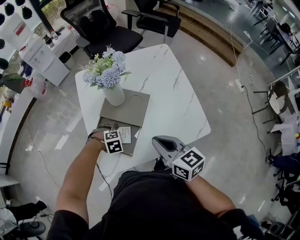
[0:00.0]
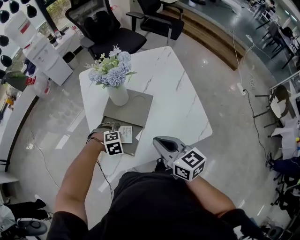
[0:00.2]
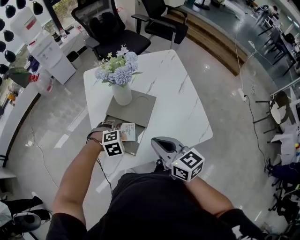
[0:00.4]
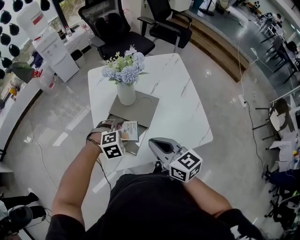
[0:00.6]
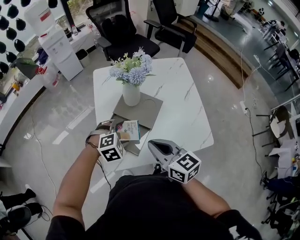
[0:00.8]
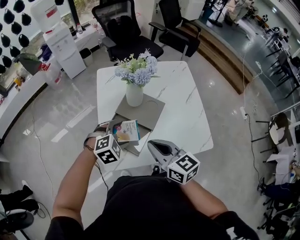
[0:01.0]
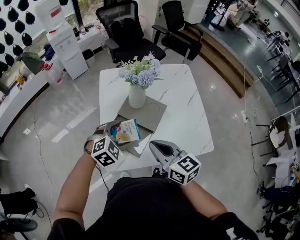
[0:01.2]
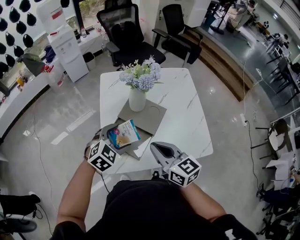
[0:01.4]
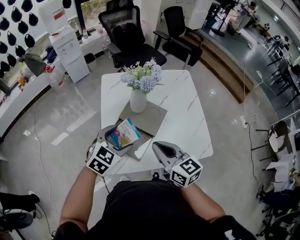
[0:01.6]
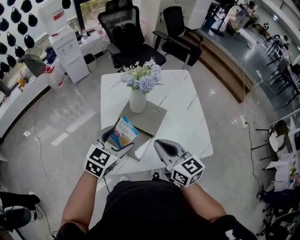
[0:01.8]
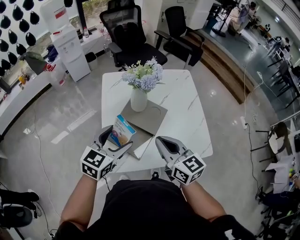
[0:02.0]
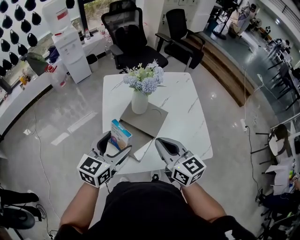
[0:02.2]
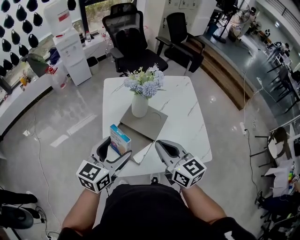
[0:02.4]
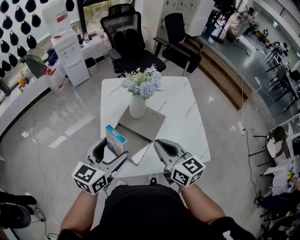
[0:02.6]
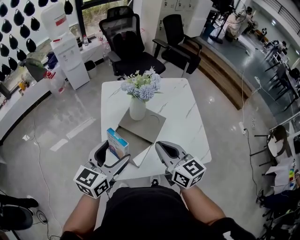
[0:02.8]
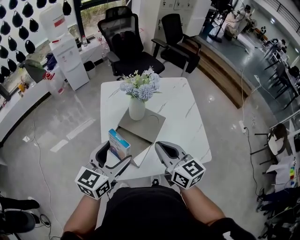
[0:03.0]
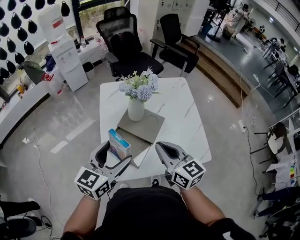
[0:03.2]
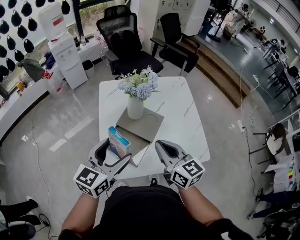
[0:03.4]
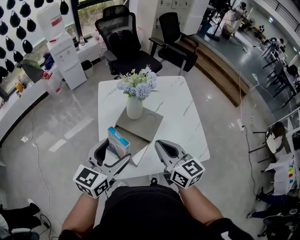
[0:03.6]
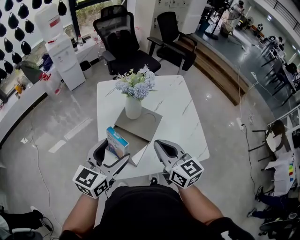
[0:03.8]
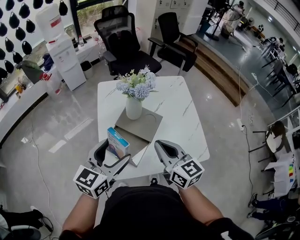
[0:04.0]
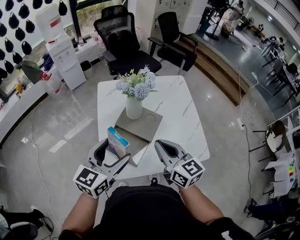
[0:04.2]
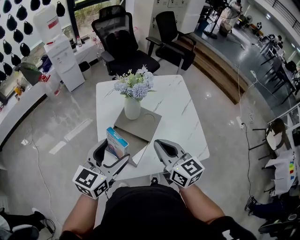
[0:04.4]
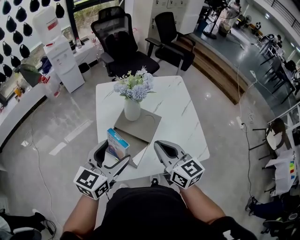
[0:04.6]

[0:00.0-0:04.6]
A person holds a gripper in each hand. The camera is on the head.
0:00.0 to 0:01.6: The right gripper moves some 10 cm; the left gripper travels upward by roughly 25 cm, and tips its fingers upward by some 50 degrees.
0:01.6 to 0:03.0: The left gripper goes some 10 cm upward, and rotates about 30 degrees.
0:03.0 to 0:04.6: Neither gripper changes place.

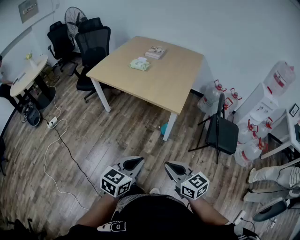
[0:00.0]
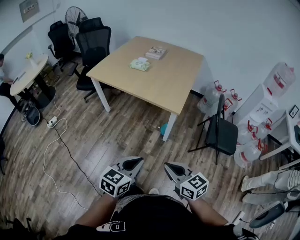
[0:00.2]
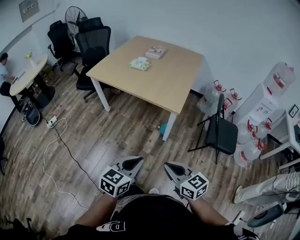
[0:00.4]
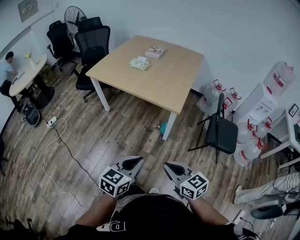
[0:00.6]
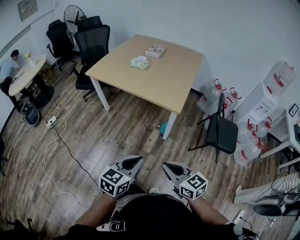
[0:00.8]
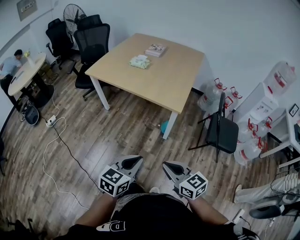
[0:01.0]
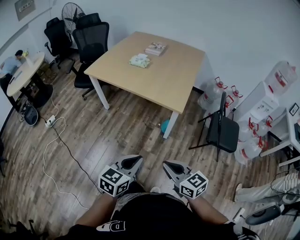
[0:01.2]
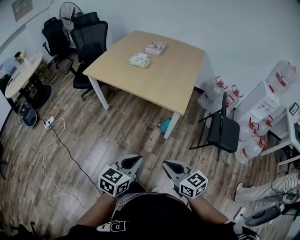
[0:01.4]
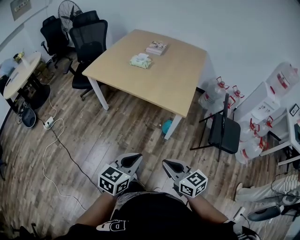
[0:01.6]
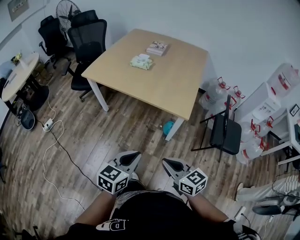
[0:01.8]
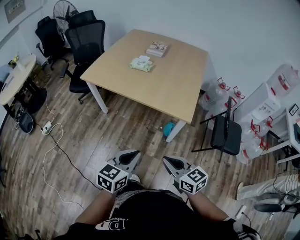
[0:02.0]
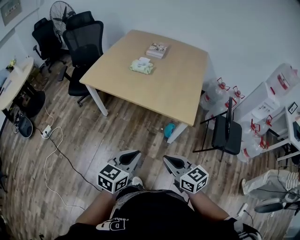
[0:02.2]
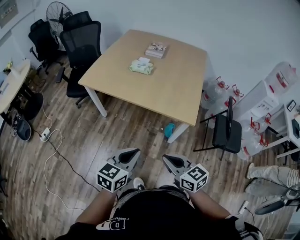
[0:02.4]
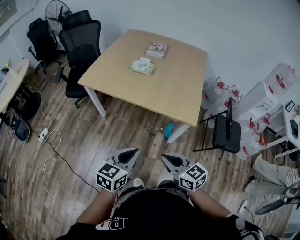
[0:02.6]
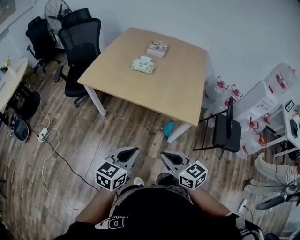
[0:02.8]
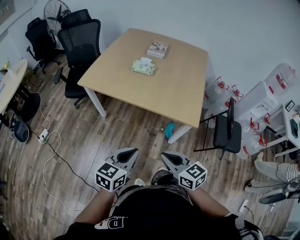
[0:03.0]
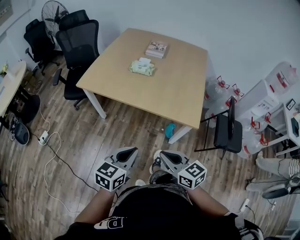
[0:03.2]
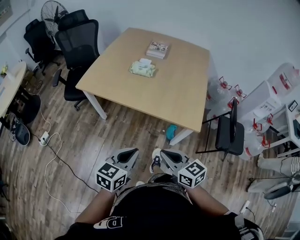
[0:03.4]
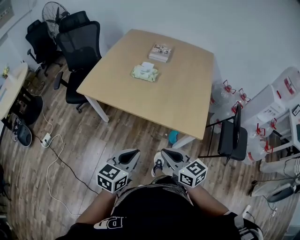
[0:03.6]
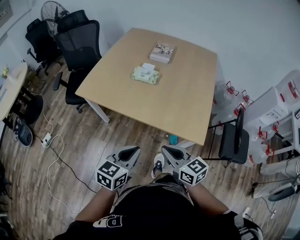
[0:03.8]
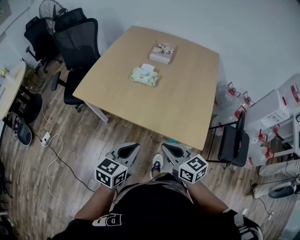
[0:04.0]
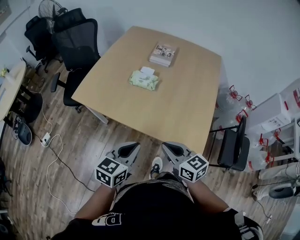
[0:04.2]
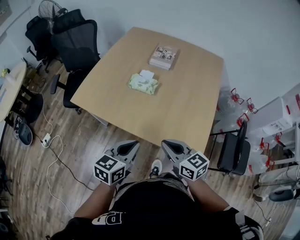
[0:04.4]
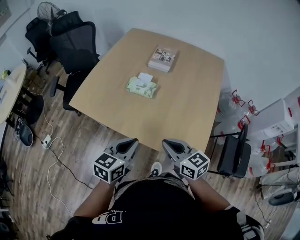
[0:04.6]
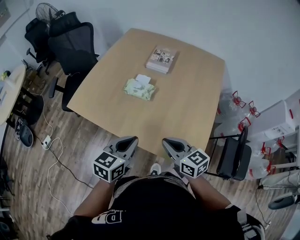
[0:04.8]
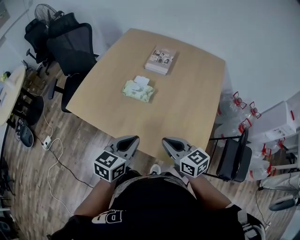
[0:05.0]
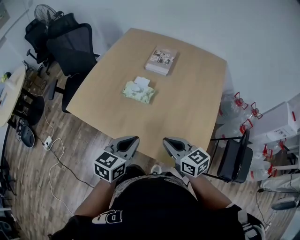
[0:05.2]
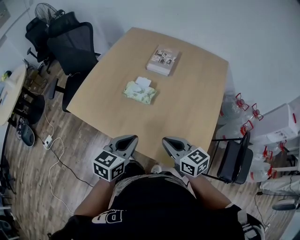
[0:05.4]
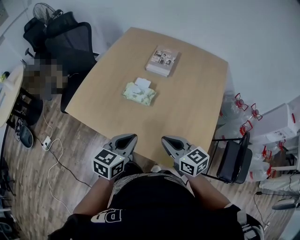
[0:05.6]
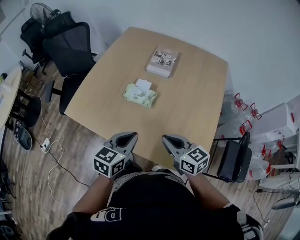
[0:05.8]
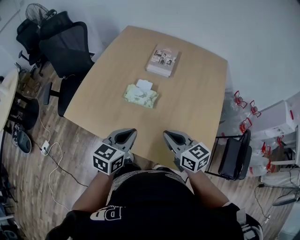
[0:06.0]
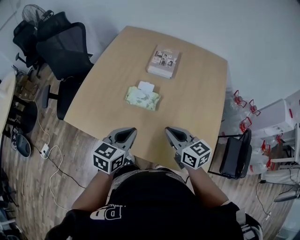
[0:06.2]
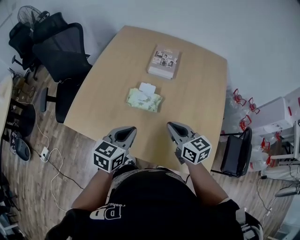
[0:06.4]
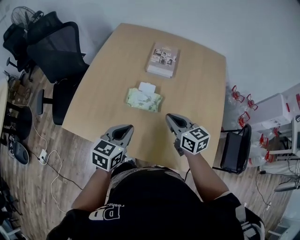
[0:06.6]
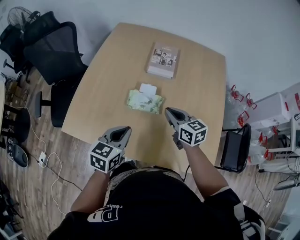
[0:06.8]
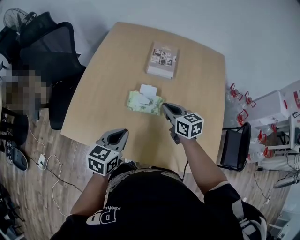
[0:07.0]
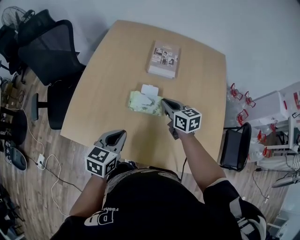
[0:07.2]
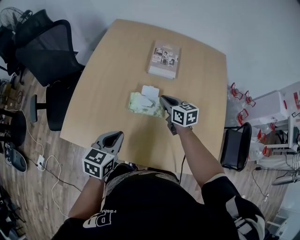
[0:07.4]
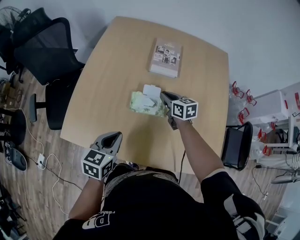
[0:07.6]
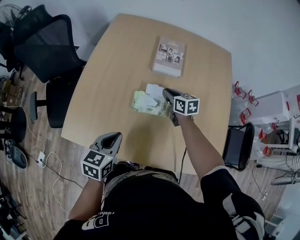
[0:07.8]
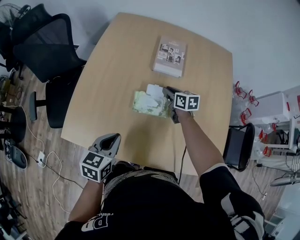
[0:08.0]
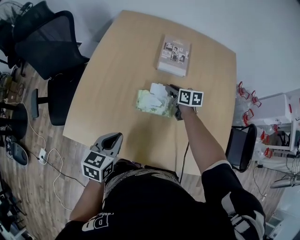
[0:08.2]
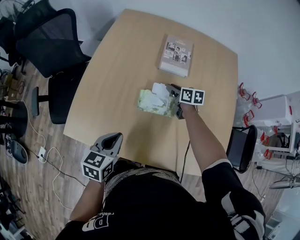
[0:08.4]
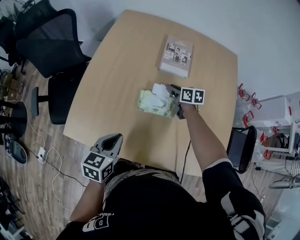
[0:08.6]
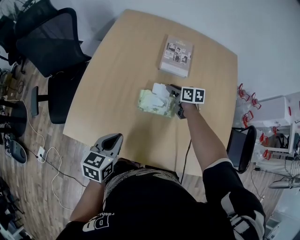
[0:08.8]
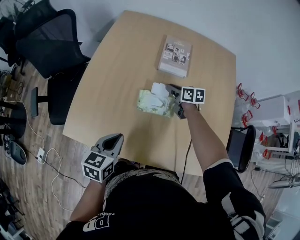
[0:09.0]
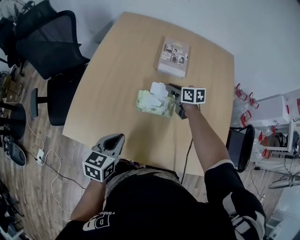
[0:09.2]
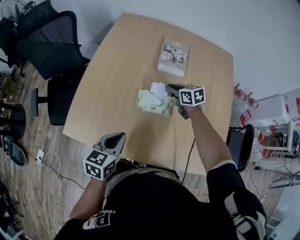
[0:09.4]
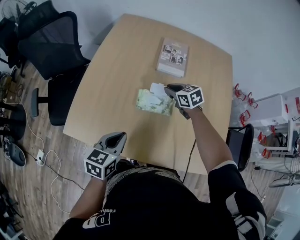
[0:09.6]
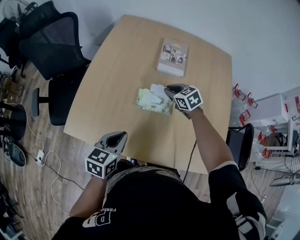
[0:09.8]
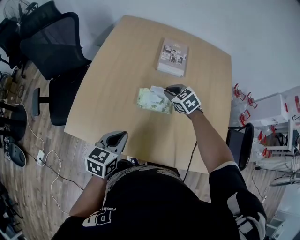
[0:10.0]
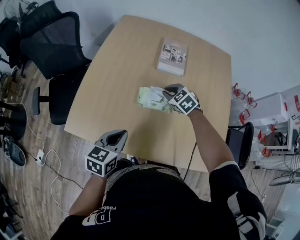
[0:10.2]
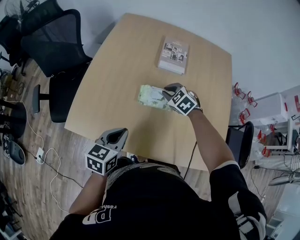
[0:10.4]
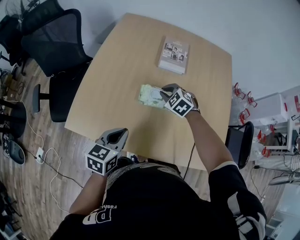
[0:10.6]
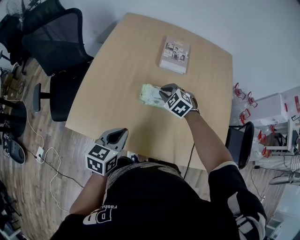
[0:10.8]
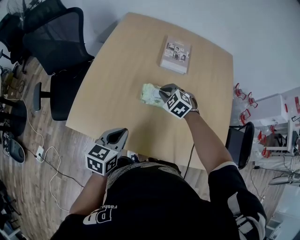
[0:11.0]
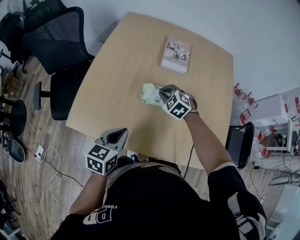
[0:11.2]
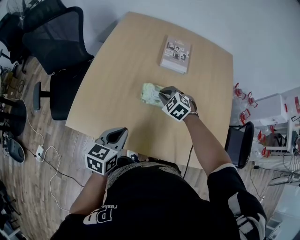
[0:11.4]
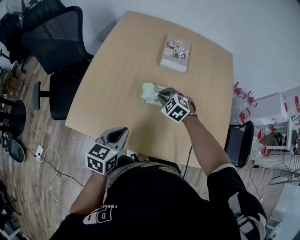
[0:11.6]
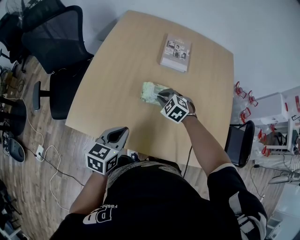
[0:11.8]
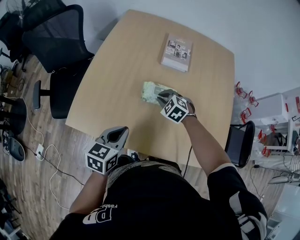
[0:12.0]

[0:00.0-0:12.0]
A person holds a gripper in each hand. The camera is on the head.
0:00.0 to 0:01.6: Both grippers travel together forward and to the left, roughly 10 cm.
0:01.6 to 0:03.0: Both grippers travel together forward and to the left, approximately 20 cm.
0:03.0 to 0:04.4: Both grippers travel together forward, roughly 30 cm.
0:04.4 to 0:06.0: The two grippers go about 15 cm forward.
0:06.0 to 0:07.6: The left gripper shifts some 20 cm to the left, forward and downward. Meanwhile the right gripper is displaced forward and downward by approximately 30 cm, and changes its angle by approximately 20 degrees.
0:07.6 to 0:09.0: The right gripper is displaced forward by roughly 5 cm.
0:09.0 to 0:10.4: The right gripper travels backward by roughly 10 cm, and twists about 60 degrees counterclockwise, seen from behind.
0:10.4 to 0:12.0: The right gripper moves approximately 5 cm.

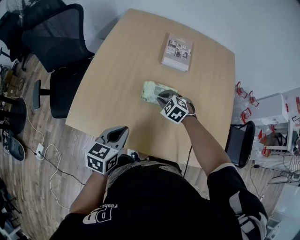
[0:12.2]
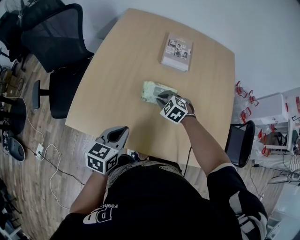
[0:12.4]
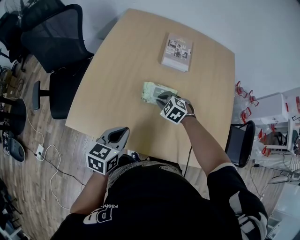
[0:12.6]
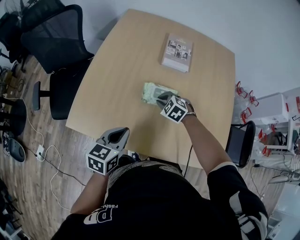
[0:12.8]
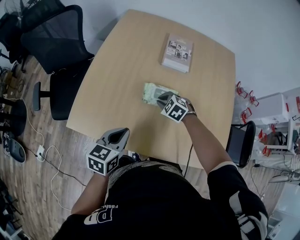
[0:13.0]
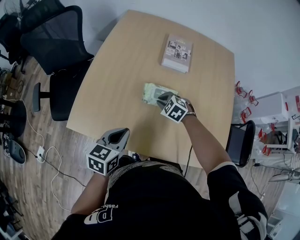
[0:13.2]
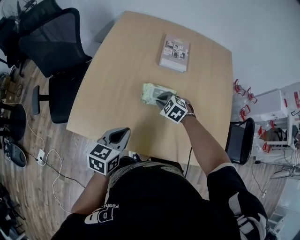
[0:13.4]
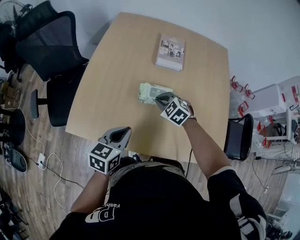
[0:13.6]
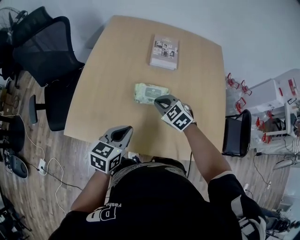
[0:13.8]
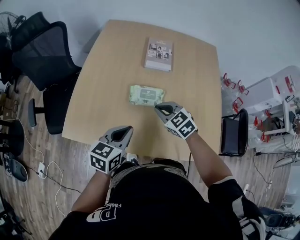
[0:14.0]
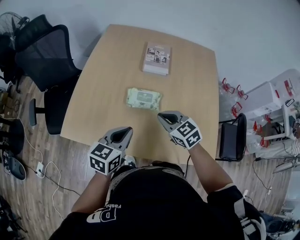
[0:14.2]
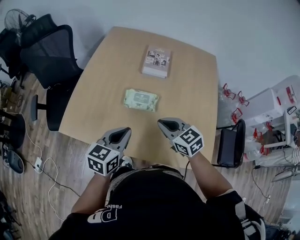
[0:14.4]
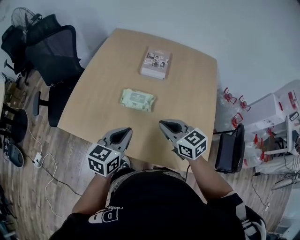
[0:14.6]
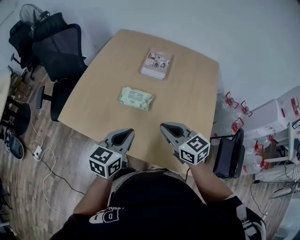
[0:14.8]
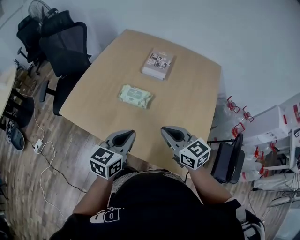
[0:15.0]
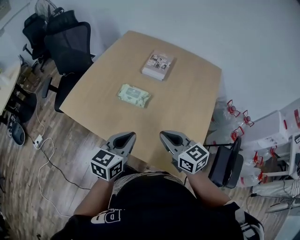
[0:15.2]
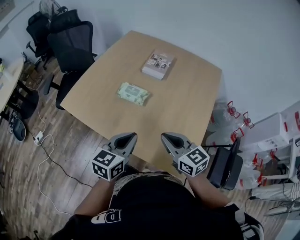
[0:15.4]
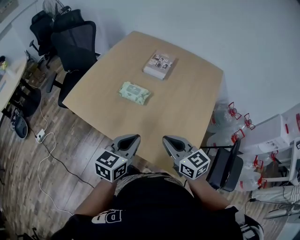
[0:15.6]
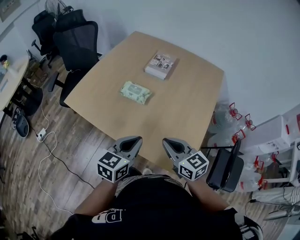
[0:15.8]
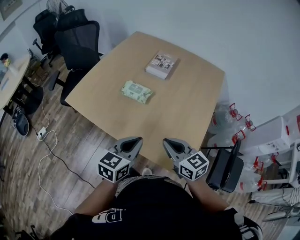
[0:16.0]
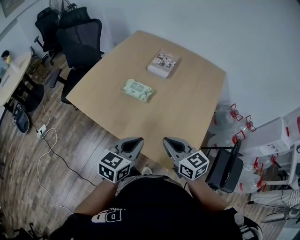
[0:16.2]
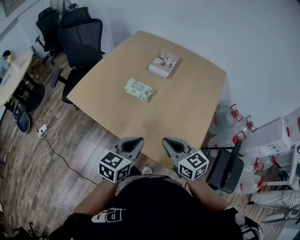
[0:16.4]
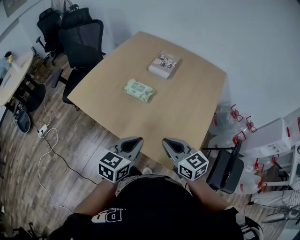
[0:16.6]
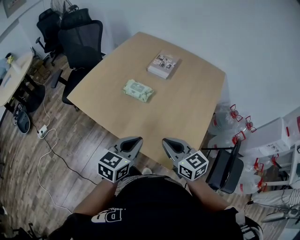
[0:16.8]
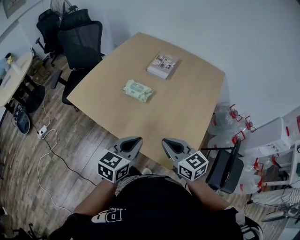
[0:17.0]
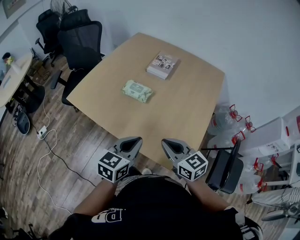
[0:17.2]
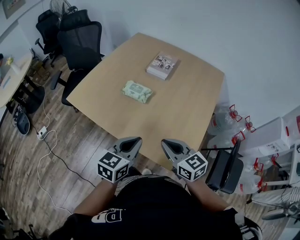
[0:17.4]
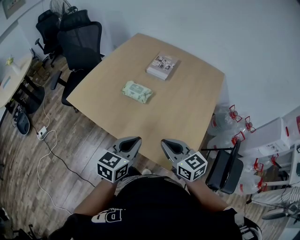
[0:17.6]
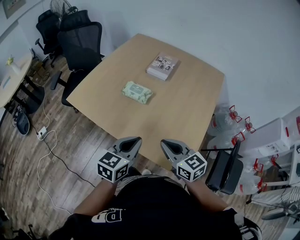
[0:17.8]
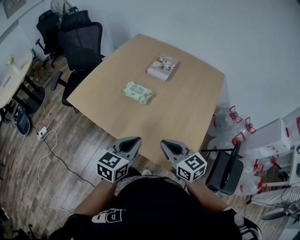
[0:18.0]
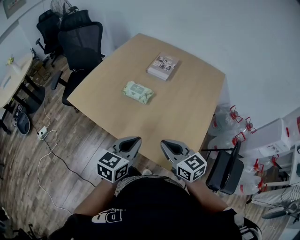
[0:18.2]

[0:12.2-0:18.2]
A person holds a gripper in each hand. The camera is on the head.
0:12.2 to 0:13.8: The right gripper goes some 5 cm upward.
0:13.8 to 0:15.2: The right gripper heads backward, to the right and upward, covering roughly 30 cm, and rotates some 40 degrees. The left gripper is displaced to the right, backward and upward by about 25 cm, and changes its angle by approximately 20 degrees.
0:15.2 to 0:16.6: The grippers both shift backward by some 10 cm.
0:16.6 to 0:18.2: Both grippers stay about where they are.

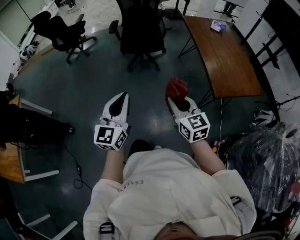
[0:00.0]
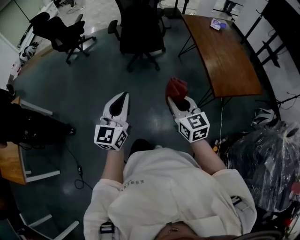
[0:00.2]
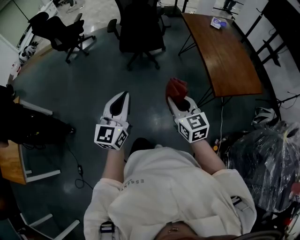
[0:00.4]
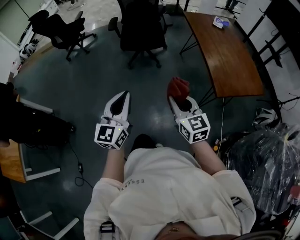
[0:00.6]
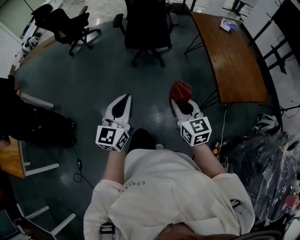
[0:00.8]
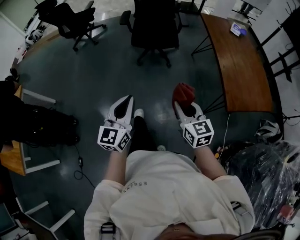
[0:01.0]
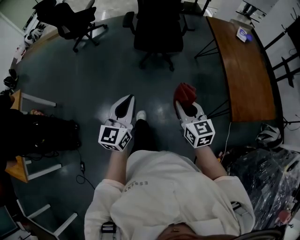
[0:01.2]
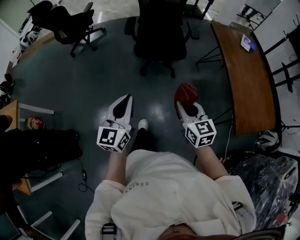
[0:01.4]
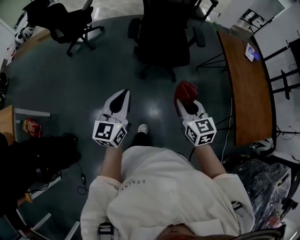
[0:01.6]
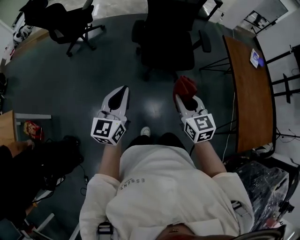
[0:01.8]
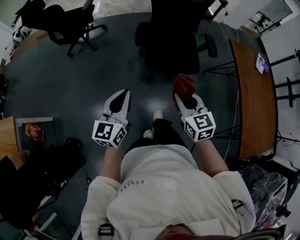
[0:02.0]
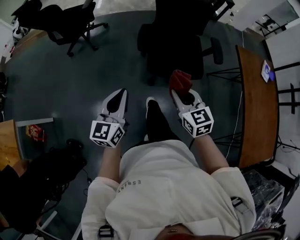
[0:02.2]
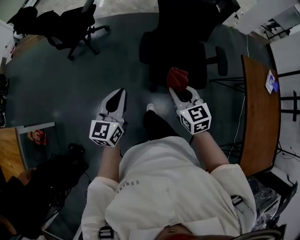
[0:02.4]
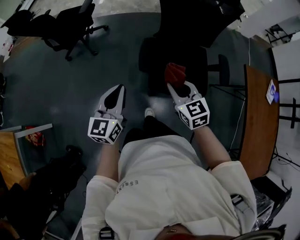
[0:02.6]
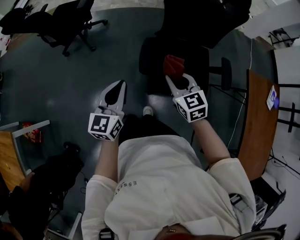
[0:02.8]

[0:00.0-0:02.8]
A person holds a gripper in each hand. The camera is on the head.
0:00.0 to 0:01.4: The right gripper is displaced forward by approximately 25 cm, while the left gripper moves forward and to the left, roughly 25 cm.
0:01.4 to 0:02.8: Both grippers are carried forward, roughly 60 cm.
